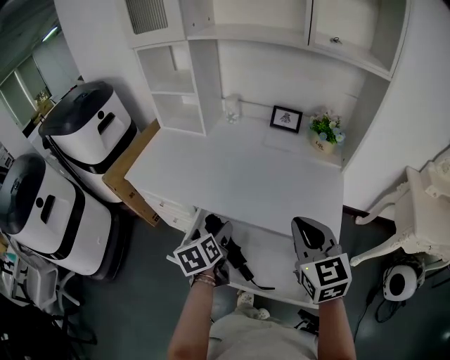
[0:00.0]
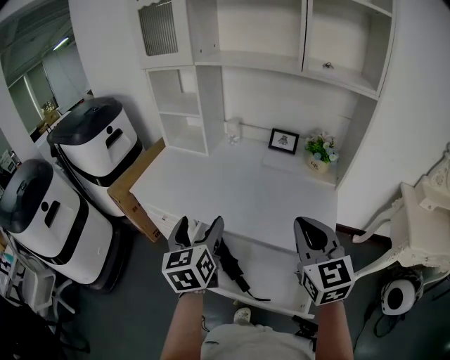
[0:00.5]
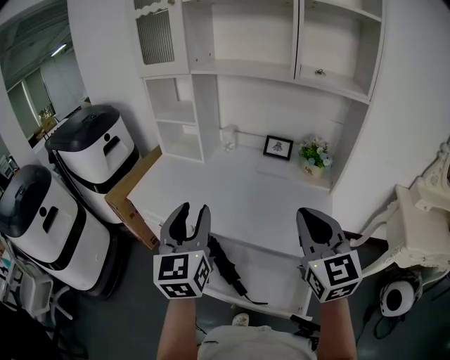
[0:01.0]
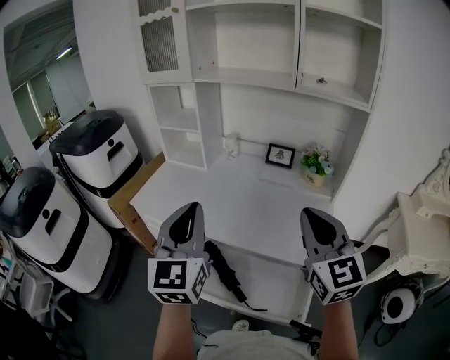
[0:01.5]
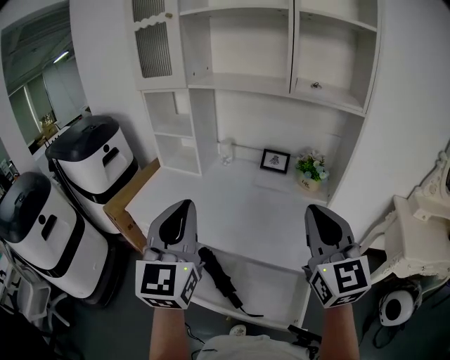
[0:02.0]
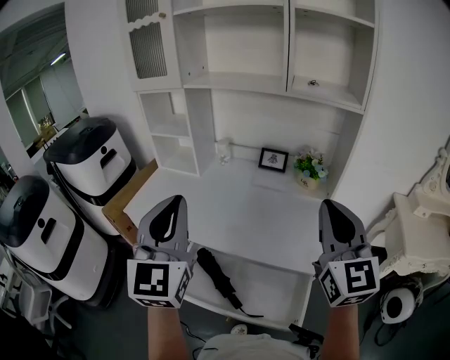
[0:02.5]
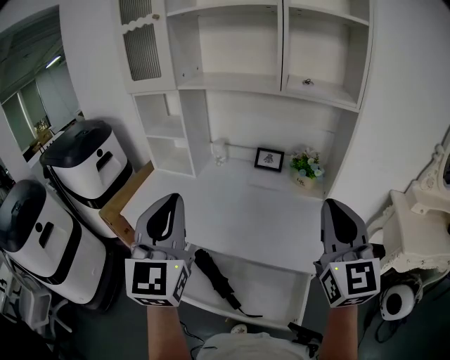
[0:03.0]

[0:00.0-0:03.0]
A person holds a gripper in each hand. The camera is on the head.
0:00.0 to 0:01.5: The right gripper is displaced upward by approximately 15 cm; the left gripper moves upward, some 30 cm, tilts its fingers some 40 degrees upward, and closes.
0:01.5 to 0:03.0: The left gripper is displaced upward by about 5 cm. The right gripper moves to the right and upward, approximately 10 cm.

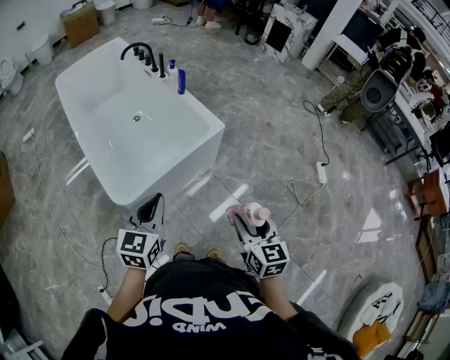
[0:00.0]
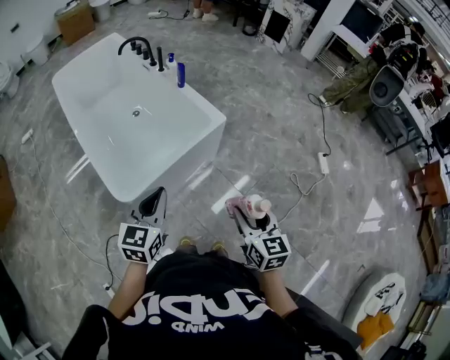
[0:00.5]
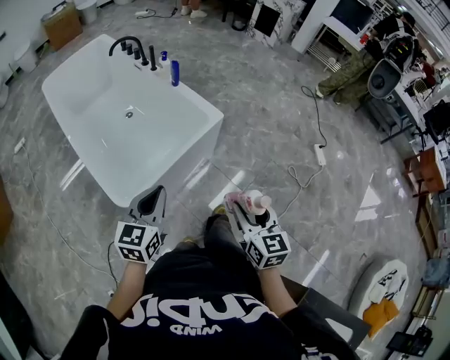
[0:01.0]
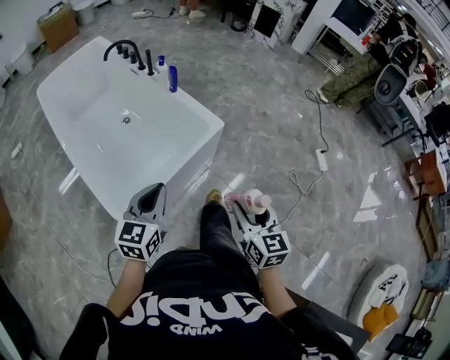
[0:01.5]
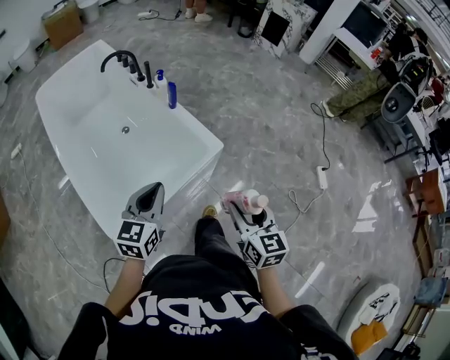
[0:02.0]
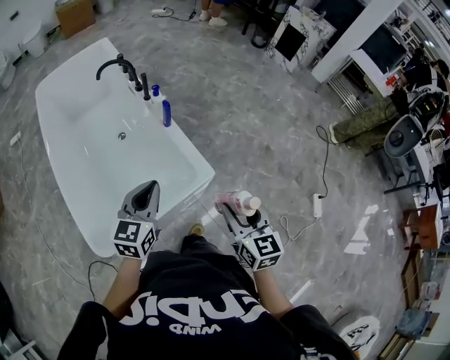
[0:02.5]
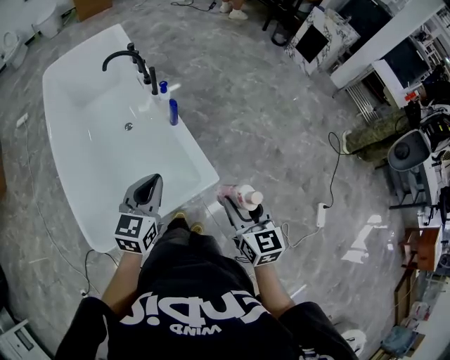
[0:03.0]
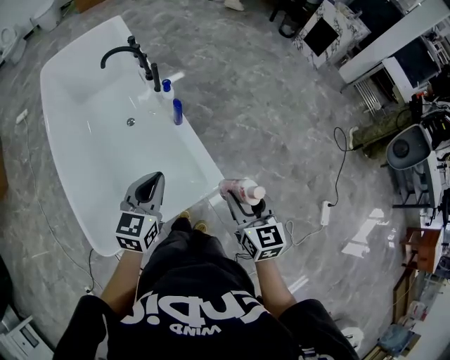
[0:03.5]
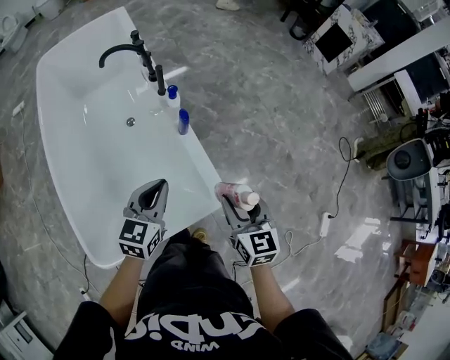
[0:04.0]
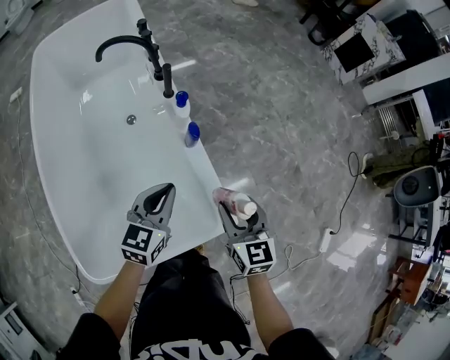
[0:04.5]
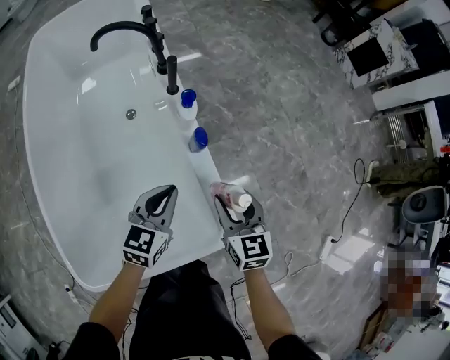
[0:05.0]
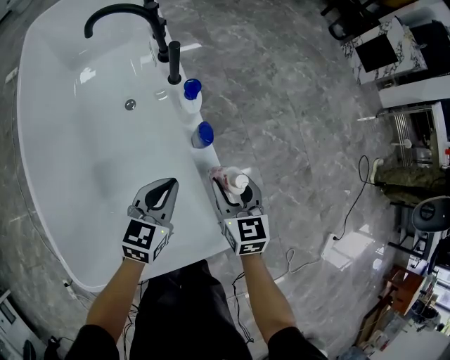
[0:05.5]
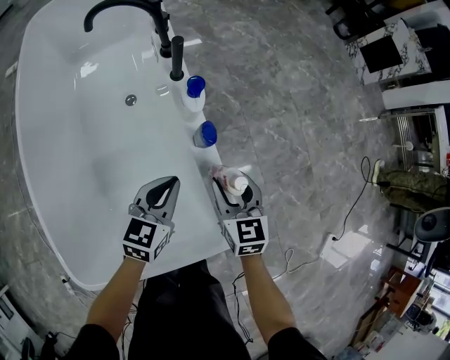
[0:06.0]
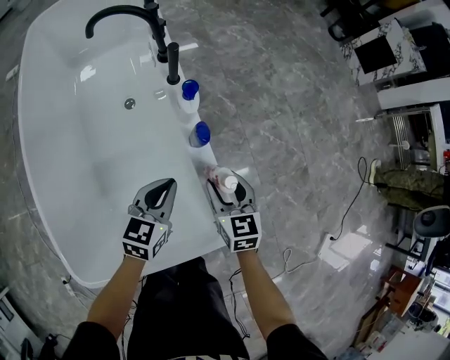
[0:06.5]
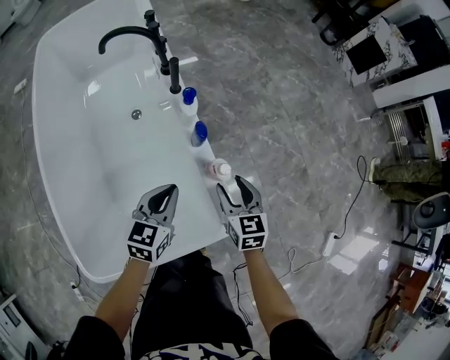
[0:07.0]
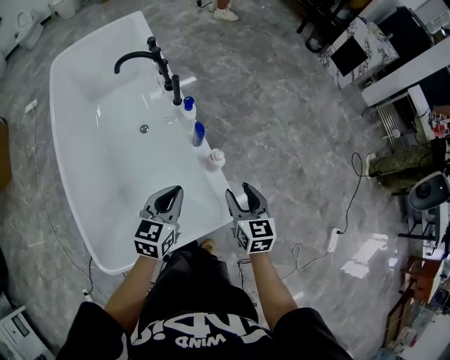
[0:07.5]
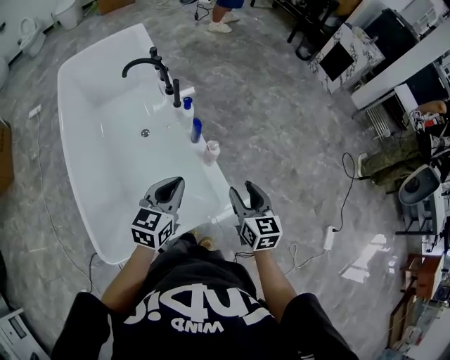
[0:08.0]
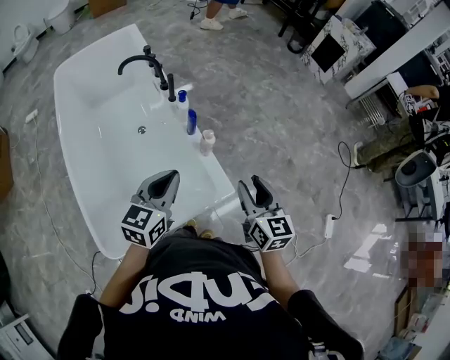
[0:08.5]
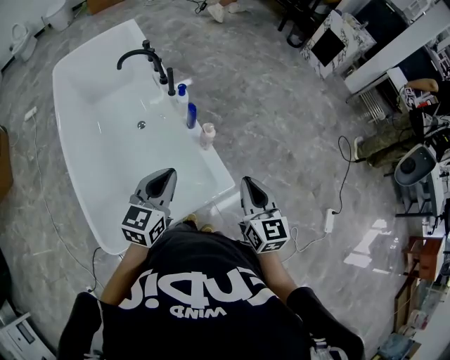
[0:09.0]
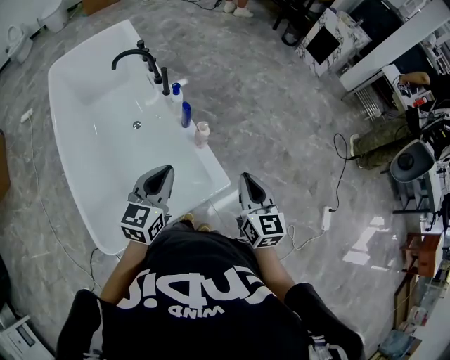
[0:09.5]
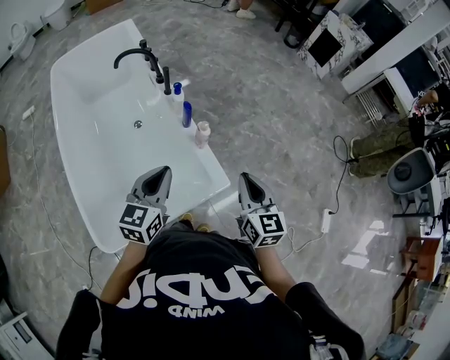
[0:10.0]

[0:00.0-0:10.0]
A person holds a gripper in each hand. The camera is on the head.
0:00.0 to 0:02.0: Both grippers move forward, roughly 20 cm.
0:02.0 to 0:04.0: Both grippers move forward, about 30 cm.
0:04.0 to 0:06.0: The left gripper moves downward and forward, roughly 25 cm; the right gripper travels downward, forward and to the left by roughly 30 cm.
0:06.0 to 0:08.0: Both grippers travel together upward and backward, about 25 cm.
0:08.0 to 0:10.0: The left gripper changes place by roughly 5 cm, while the right gripper is displaced upward and backward by approximately 10 cm, and closes up.

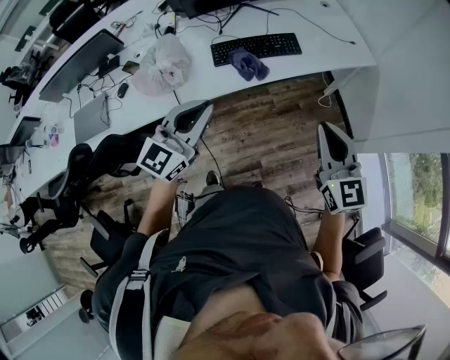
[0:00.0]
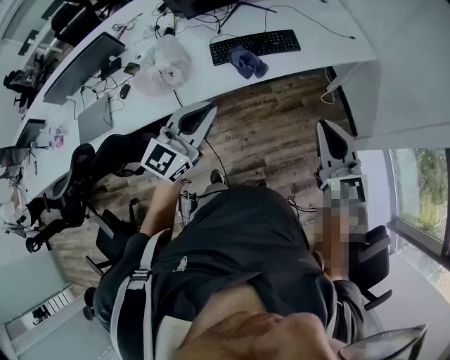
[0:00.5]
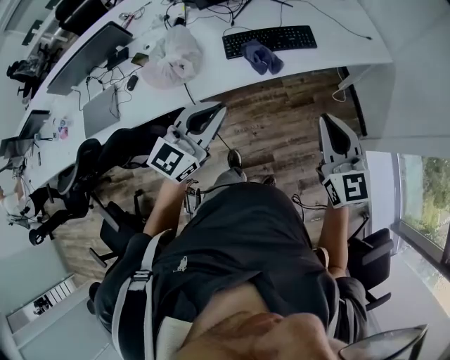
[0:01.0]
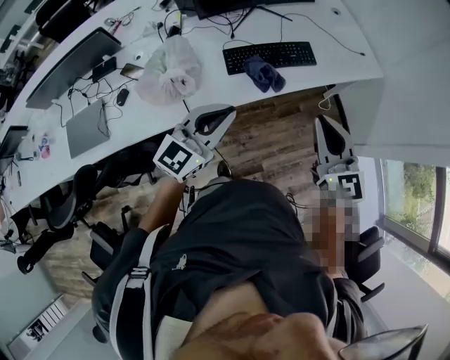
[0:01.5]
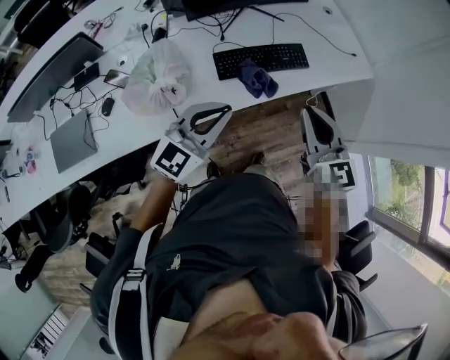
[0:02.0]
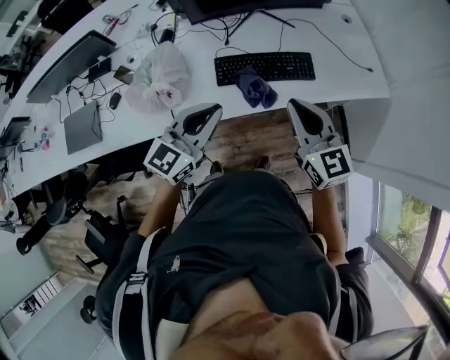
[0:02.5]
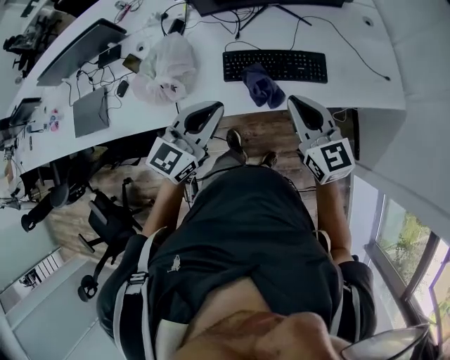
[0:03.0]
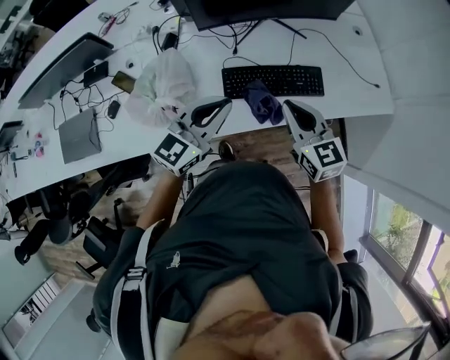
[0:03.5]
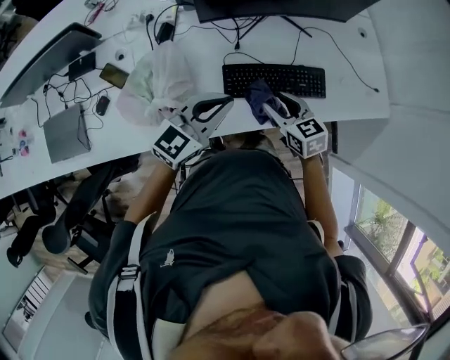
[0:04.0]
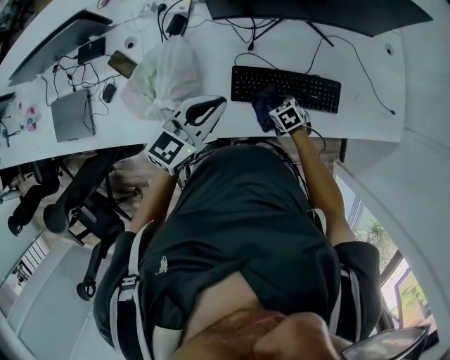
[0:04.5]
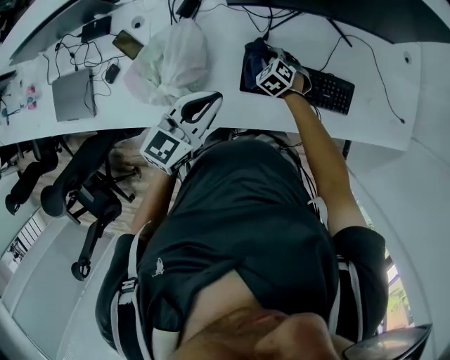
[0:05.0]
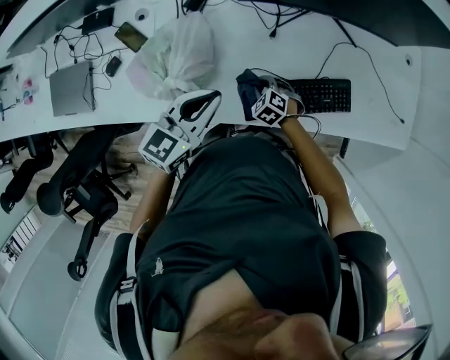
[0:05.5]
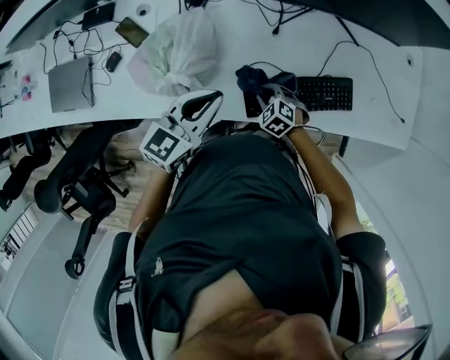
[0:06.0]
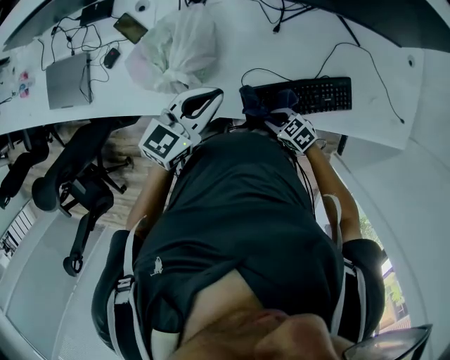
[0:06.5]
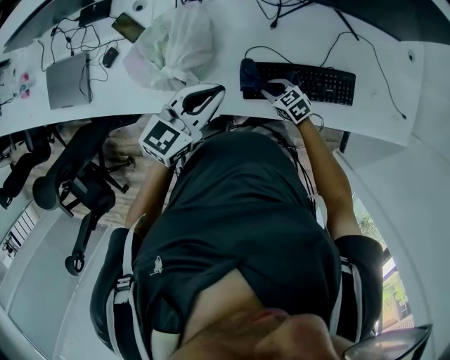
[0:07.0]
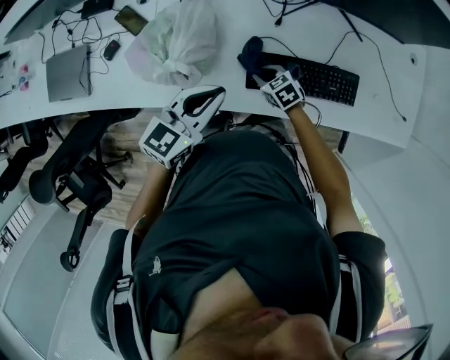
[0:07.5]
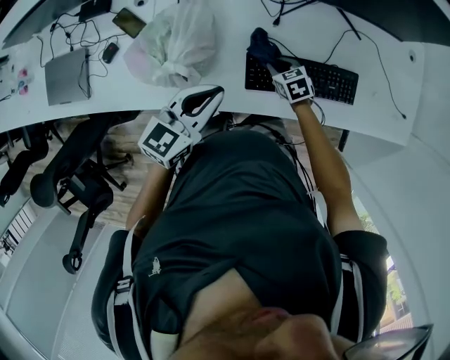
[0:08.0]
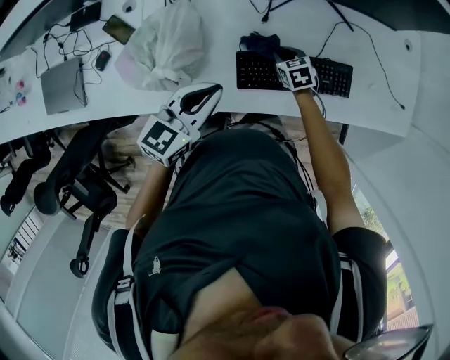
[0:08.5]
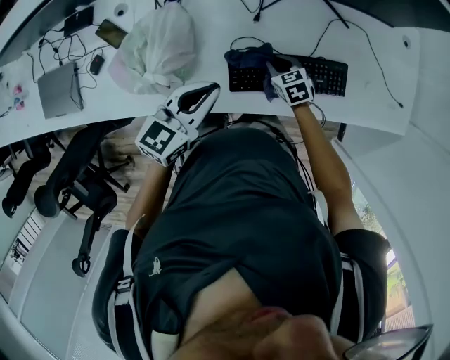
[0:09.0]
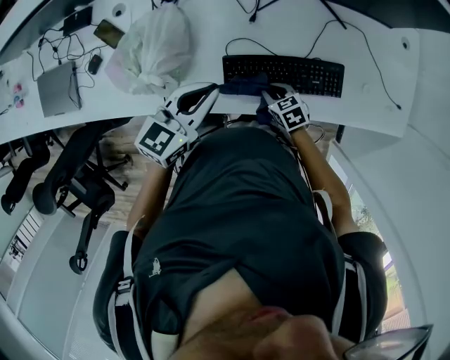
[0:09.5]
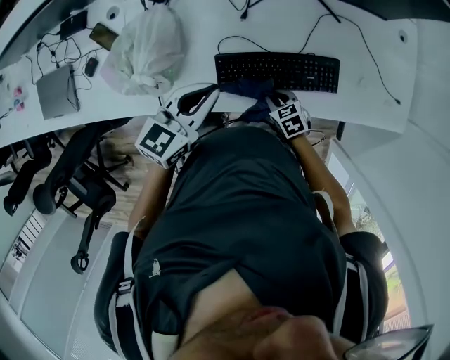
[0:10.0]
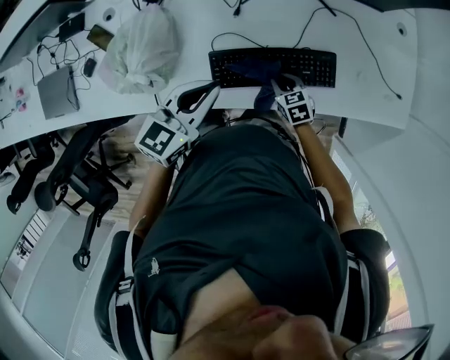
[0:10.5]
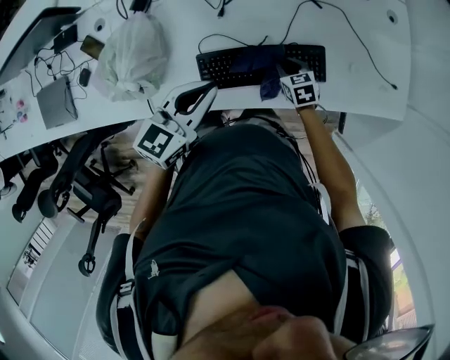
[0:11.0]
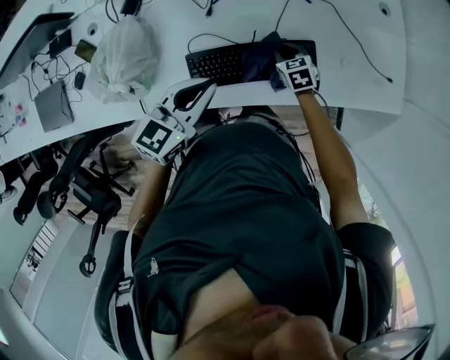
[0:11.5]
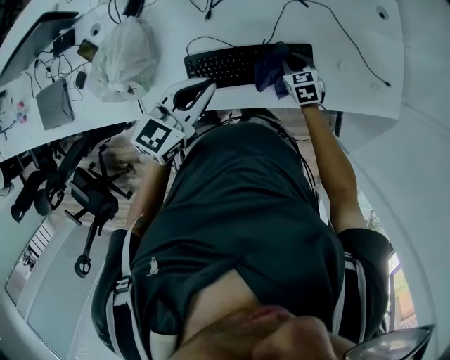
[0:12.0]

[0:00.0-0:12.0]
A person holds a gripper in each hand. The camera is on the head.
0:00.0 to 0:02.0: The left gripper goes about 15 cm forward and to the left. The right gripper travels to the left and forward by some 25 cm.
0:02.0 to 0:04.0: The left gripper heads forward, covering some 20 cm, while the right gripper shifts some 30 cm forward and downward, changes its angle by some 40 degrees, and opens.
0:04.0 to 0:06.0: The left gripper goes approximately 10 cm to the left, and rotates roughly 20 degrees; the right gripper shifts about 20 cm downward and to the left, swivels about 50 degrees, and closes up.
0:06.0 to 0:08.0: The right gripper moves some 10 cm, and changes its angle by roughly 30 degrees.
0:08.0 to 0:10.0: The left gripper heads to the right, covering approximately 10 cm. Meanwhile the right gripper travels backward and to the right by roughly 15 cm.
0:10.0 to 0:12.0: The right gripper travels to the right and forward by approximately 20 cm. The left gripper moves to the right, some 10 cm.

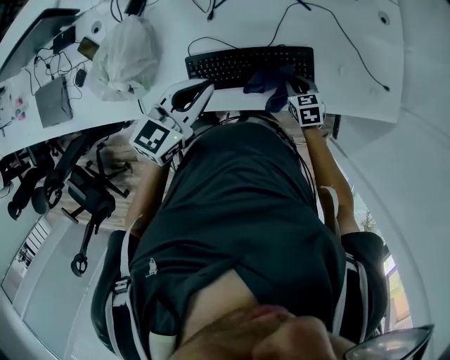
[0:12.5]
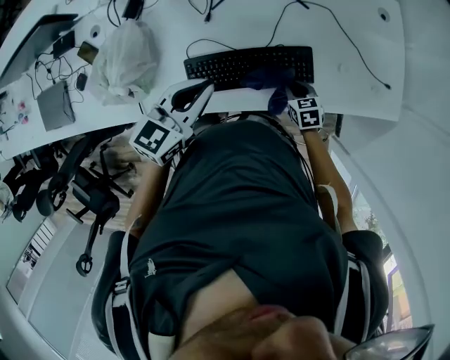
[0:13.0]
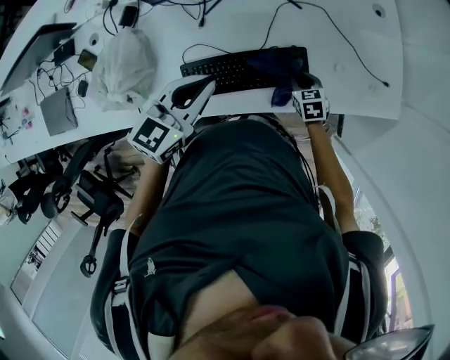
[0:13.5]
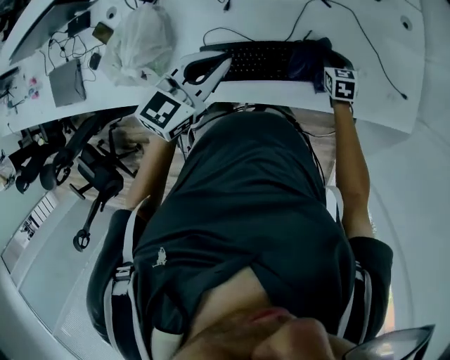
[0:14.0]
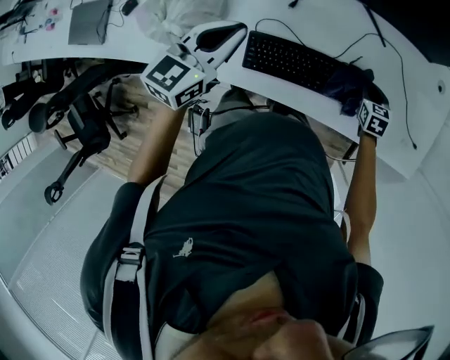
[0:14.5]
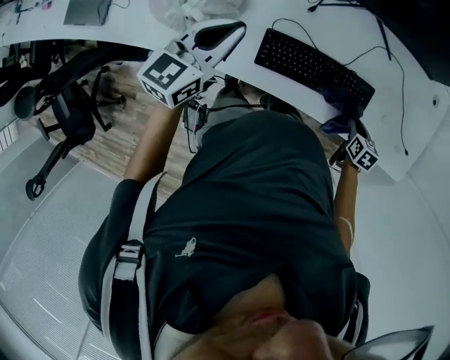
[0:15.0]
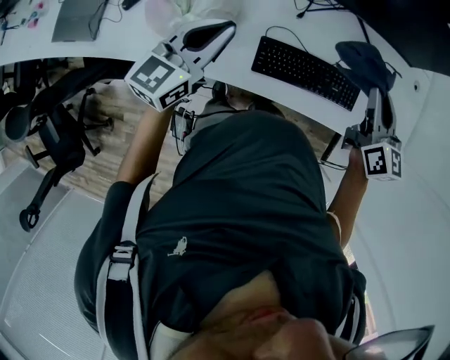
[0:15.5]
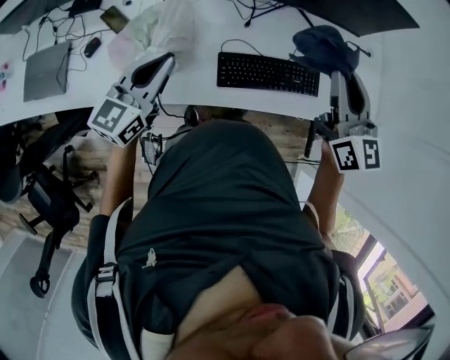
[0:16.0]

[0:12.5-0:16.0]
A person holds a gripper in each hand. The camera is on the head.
0:12.5 to 0:14.5: The right gripper travels forward by about 10 cm. Meanwhile the left gripper is displaced to the left by approximately 10 cm.
0:14.5 to 0:16.0: The left gripper goes roughly 20 cm to the left, backward and upward. The right gripper goes approximately 50 cm upward and to the left, and tilts its fingers roughly 50 degrees upward.
